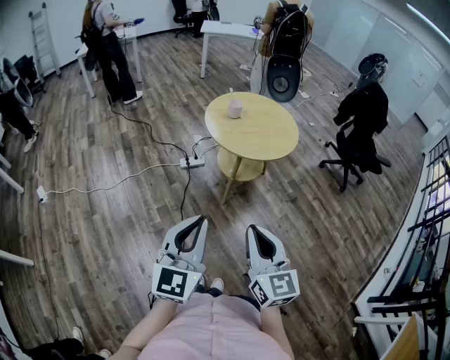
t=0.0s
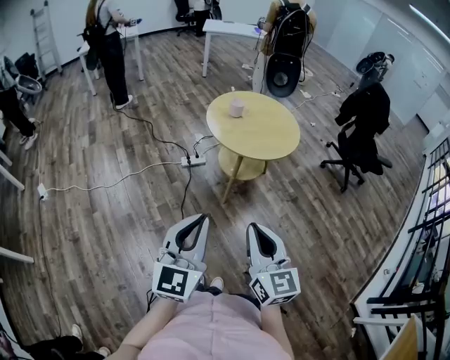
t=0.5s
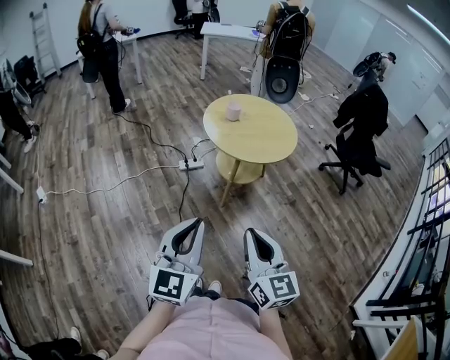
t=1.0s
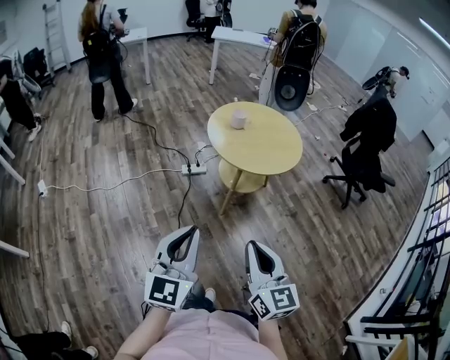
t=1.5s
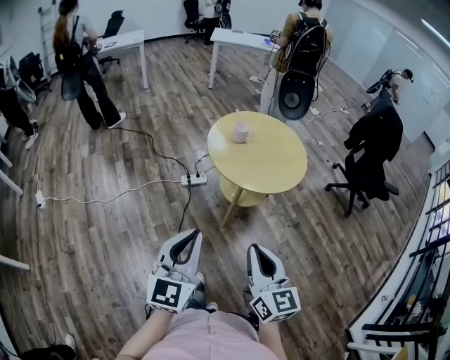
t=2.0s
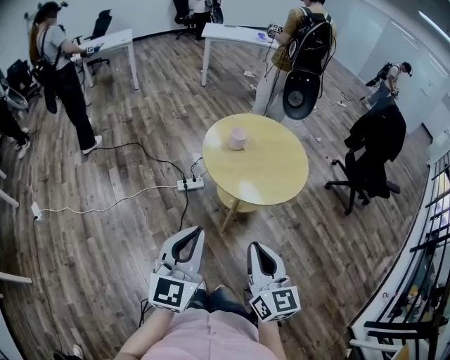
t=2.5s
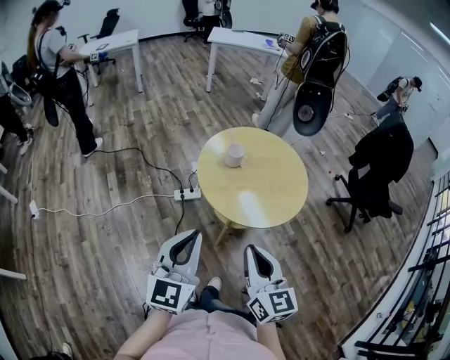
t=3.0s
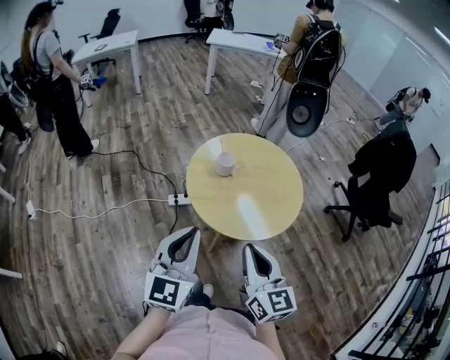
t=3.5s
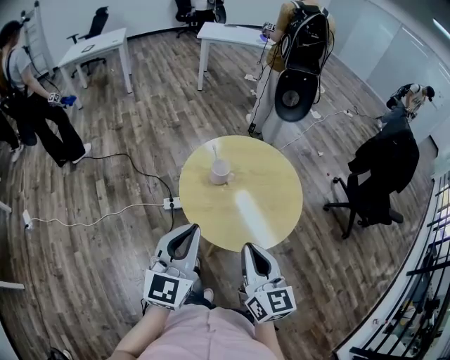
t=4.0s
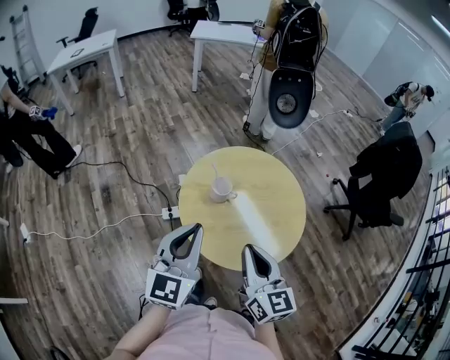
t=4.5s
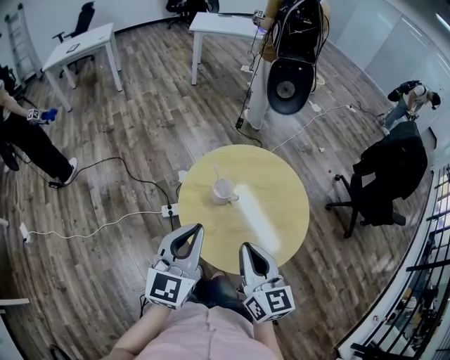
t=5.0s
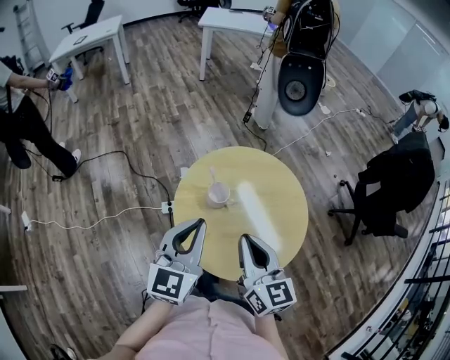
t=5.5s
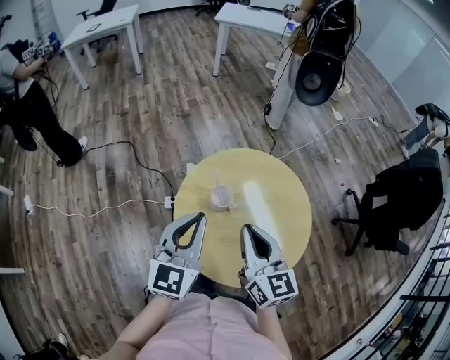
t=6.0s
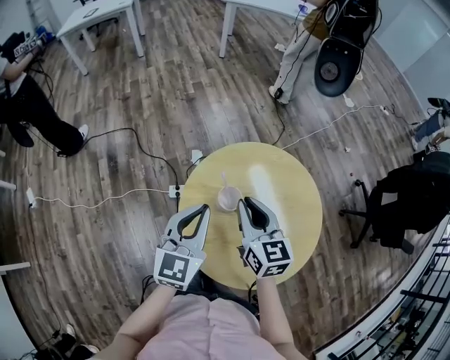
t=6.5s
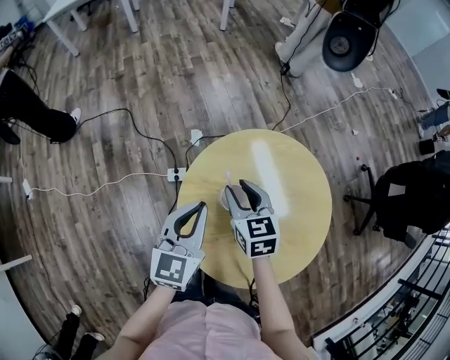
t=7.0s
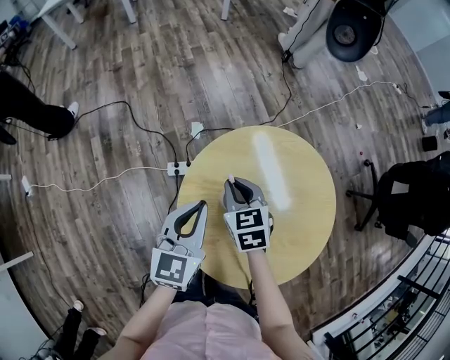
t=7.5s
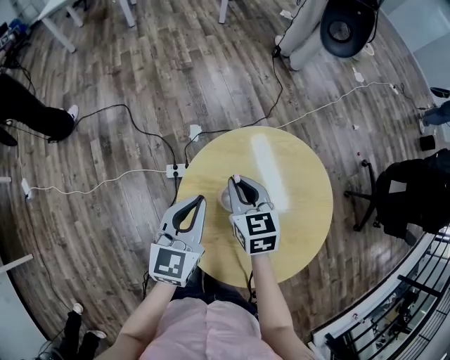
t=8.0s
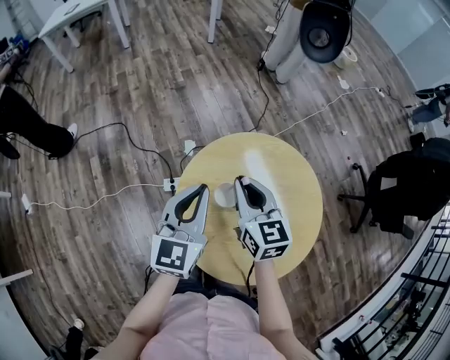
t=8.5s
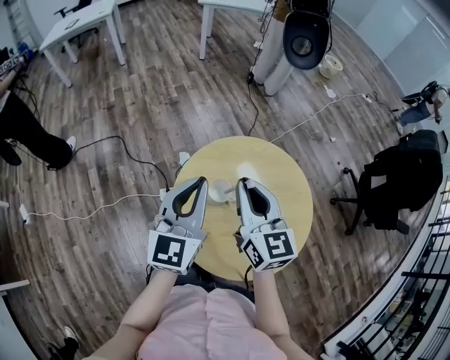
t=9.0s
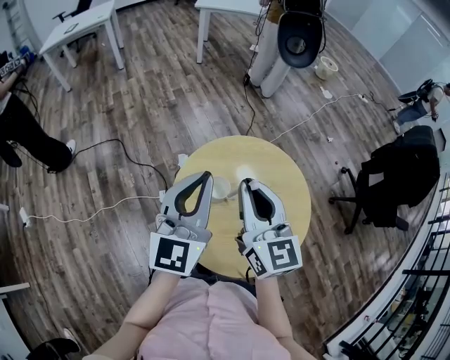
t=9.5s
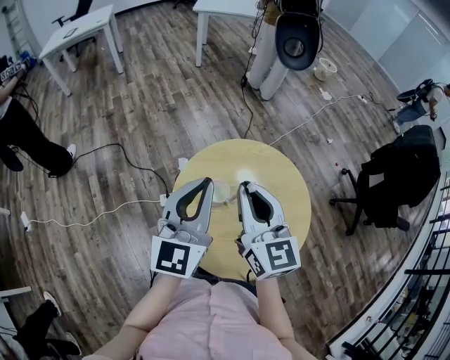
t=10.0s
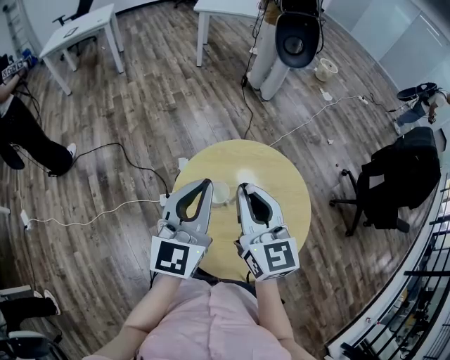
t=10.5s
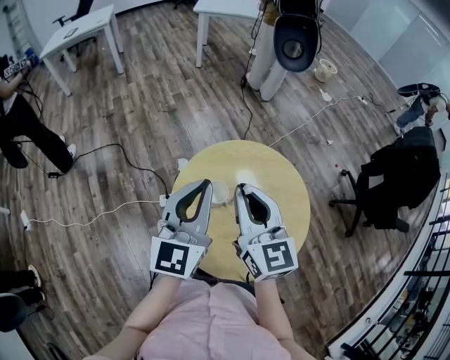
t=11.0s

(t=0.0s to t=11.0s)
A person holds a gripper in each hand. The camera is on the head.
t=0.0s - t=2.0s: The grippers both shift forward by approximately 10 cm.
t=2.0s - t=3.5s: The two grippers go roughly 25 cm forward.
t=3.5s - t=5.5s: Both grippers travel together forward, approximately 25 cm.
t=5.5s - t=7.5s: The right gripper travels forward and downward by roughly 30 cm, angles its fingers downward, by some 30 degrees, and opens and closes again. The left gripper travels forward and downward by about 20 cm.
t=7.5s - t=9.0s: The left gripper goes roughly 15 cm upward; the right gripper travels upward by about 20 cm, and tilts its fingers approximately 40 degrees upward.
t=9.0s - t=11.0s: There are only small adjustments of the grippers.

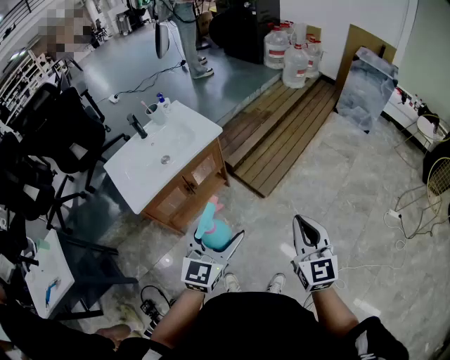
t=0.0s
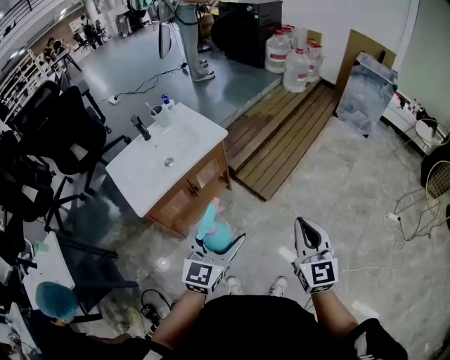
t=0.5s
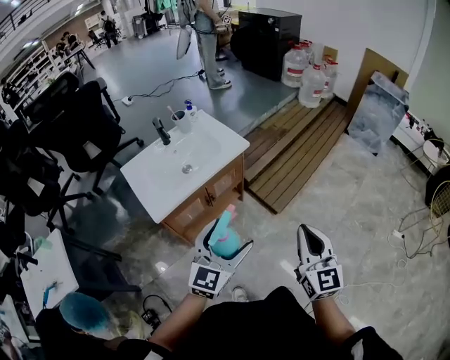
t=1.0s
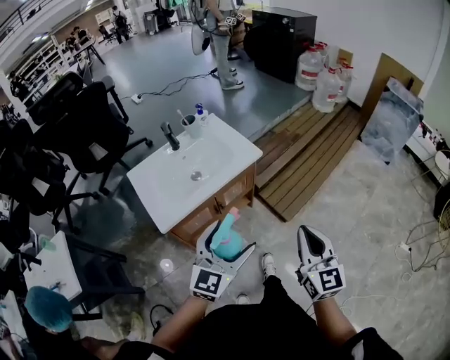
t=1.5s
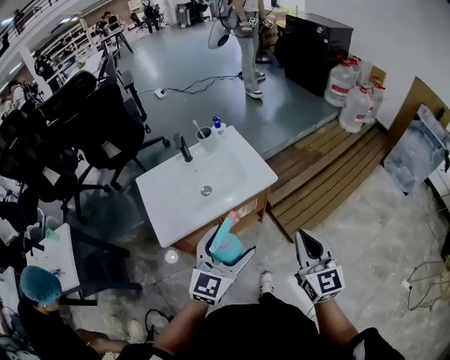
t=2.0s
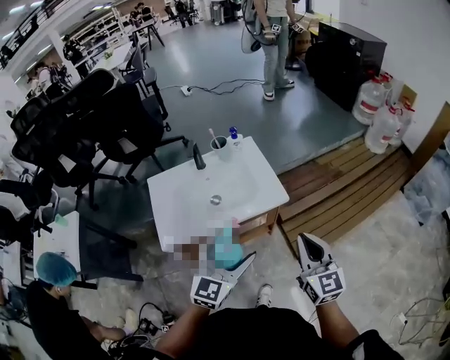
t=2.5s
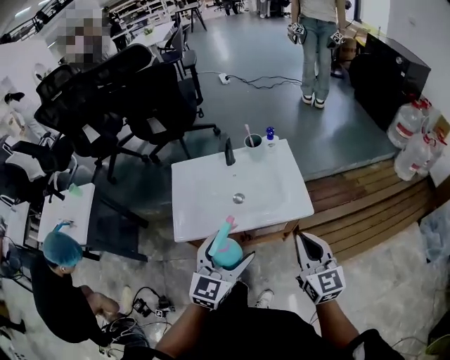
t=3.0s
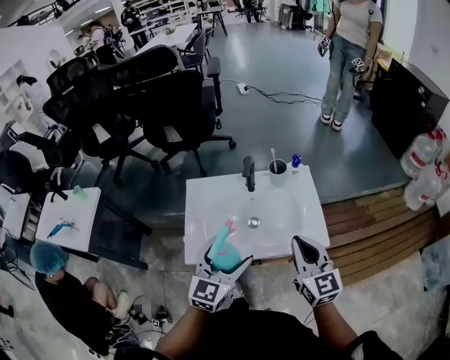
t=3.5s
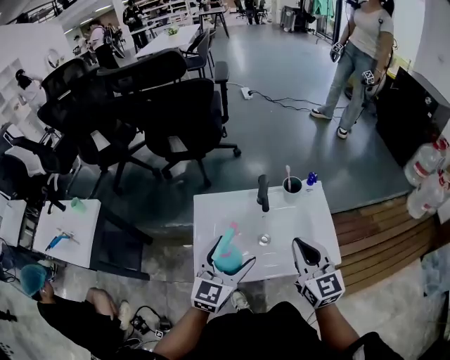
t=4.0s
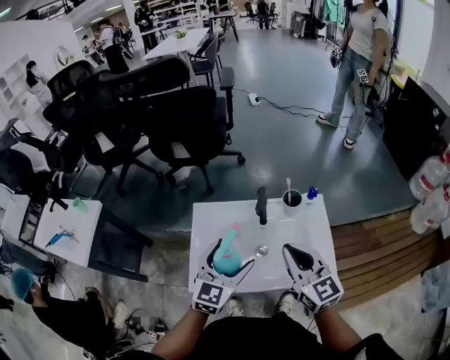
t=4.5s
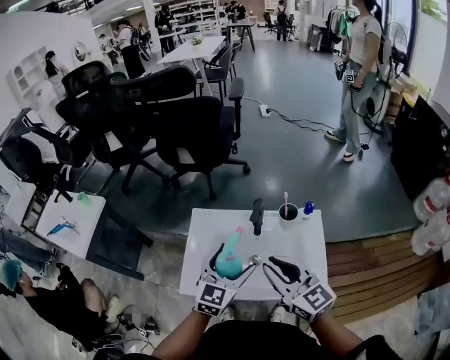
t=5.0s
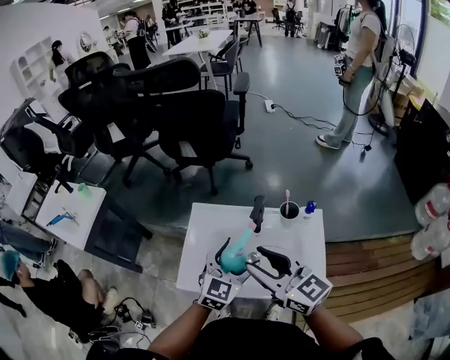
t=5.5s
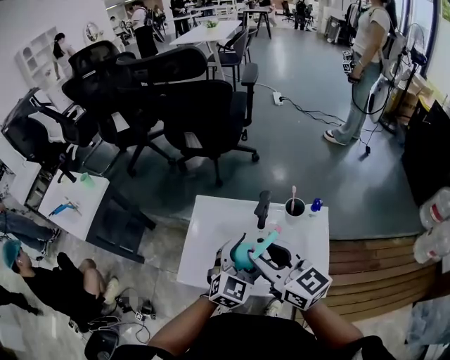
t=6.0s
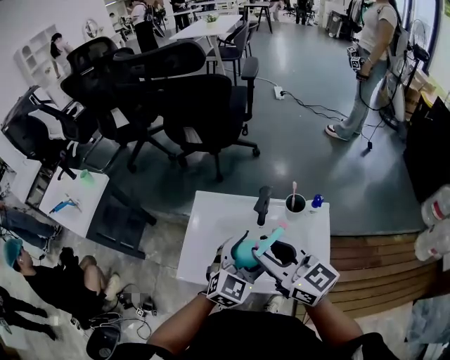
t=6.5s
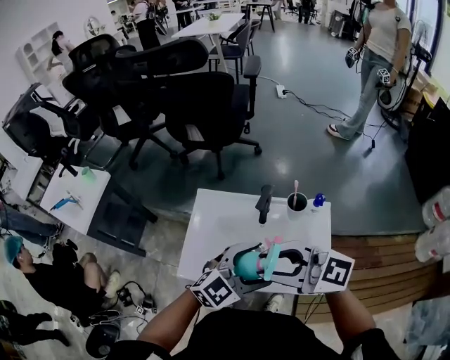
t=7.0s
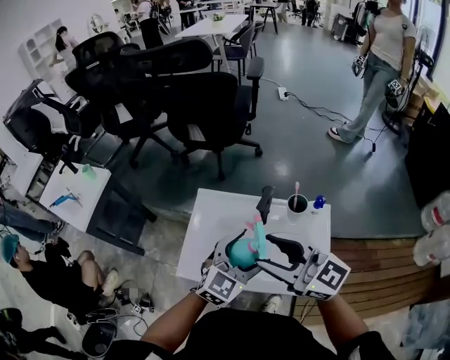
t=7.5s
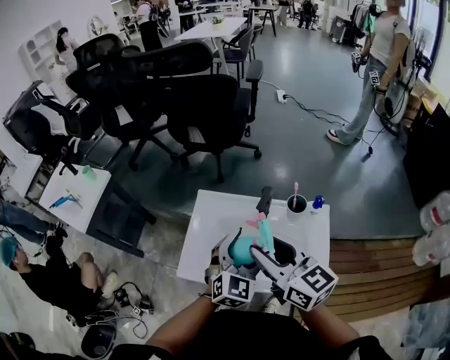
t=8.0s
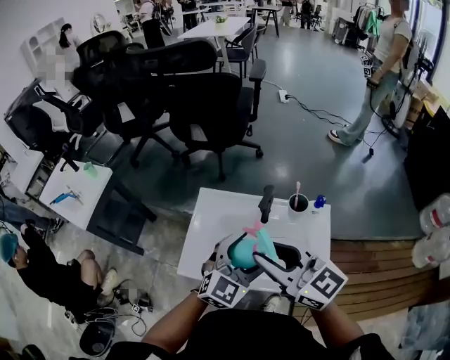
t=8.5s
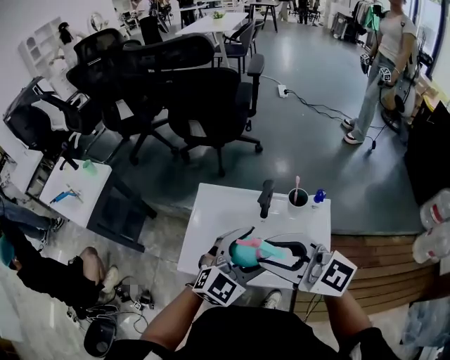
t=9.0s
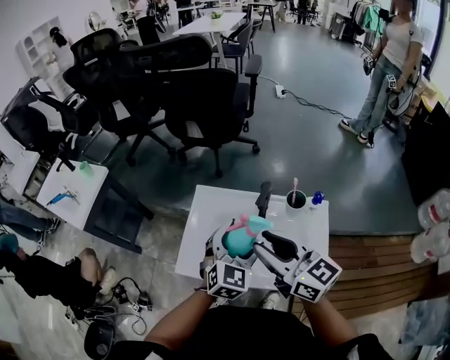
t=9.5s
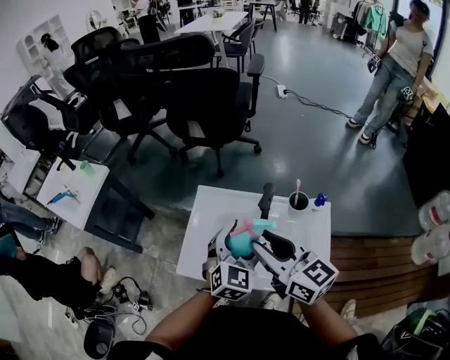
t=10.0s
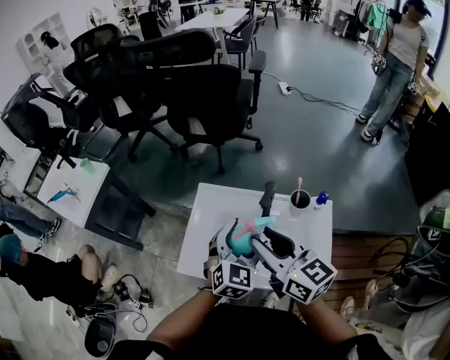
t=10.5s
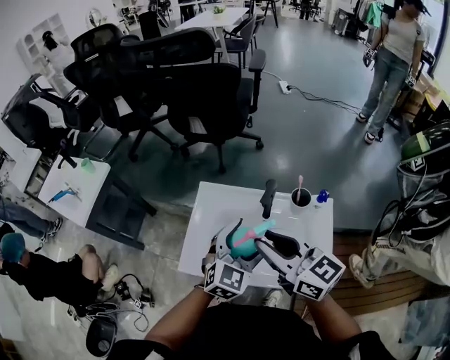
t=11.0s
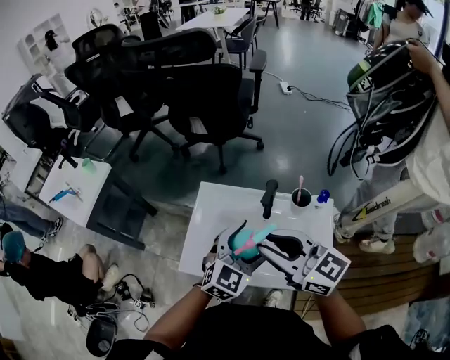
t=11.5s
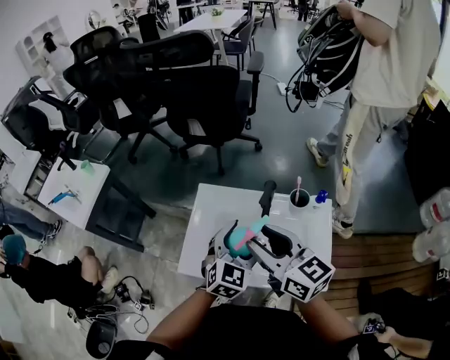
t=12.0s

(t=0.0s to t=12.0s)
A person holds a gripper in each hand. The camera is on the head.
t=0.0s - t=2.0s: The two grippers go about 25 cm forward and to the left.
t=2.0s - t=4.0s: The right gripper ends up some 35 cm from where it was, and swivels roughly 30 degrees. The left gripper ends up roughly 30 cm from where it was, and rotates some 30 degrees.
t=4.0s - t=6.0s: The right gripper travels to the left and forward by approximately 10 cm, rotates roughly 40 degrees, and opens. The left gripper goes some 10 cm to the right.
t=10.0s - t=12.0s: The grippers stay close to where they were, moving slightly.

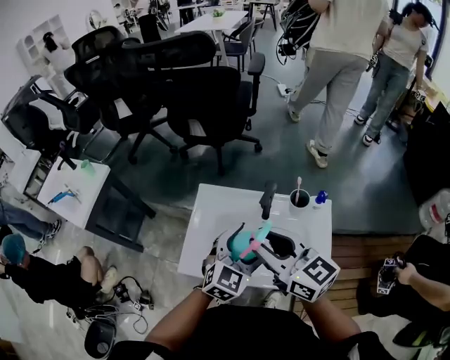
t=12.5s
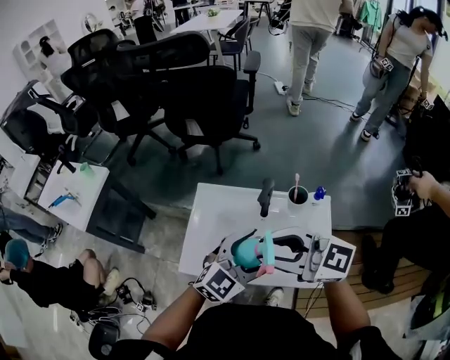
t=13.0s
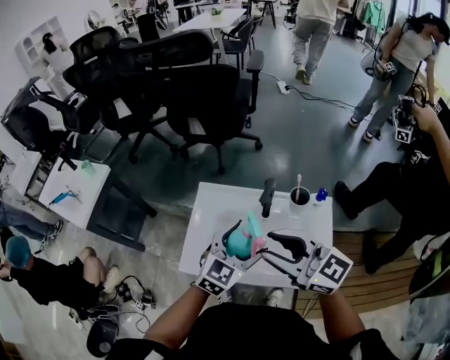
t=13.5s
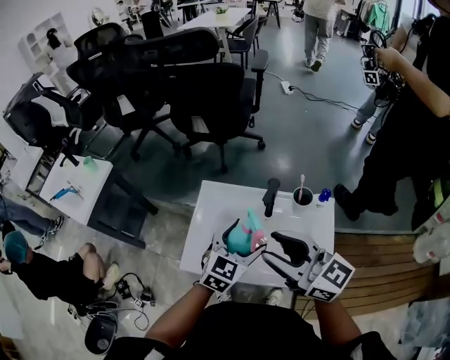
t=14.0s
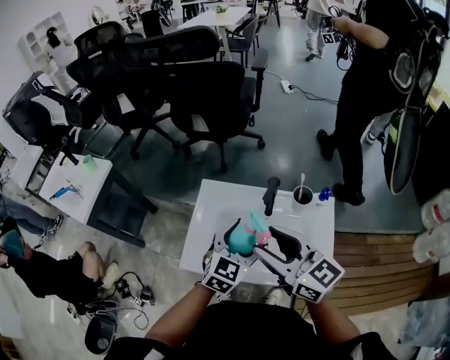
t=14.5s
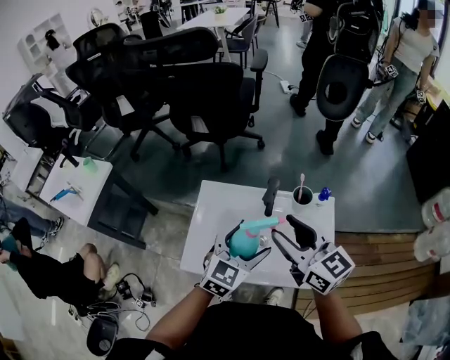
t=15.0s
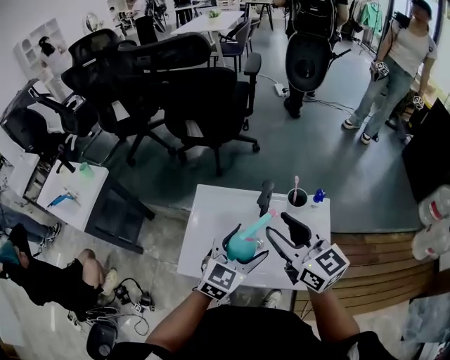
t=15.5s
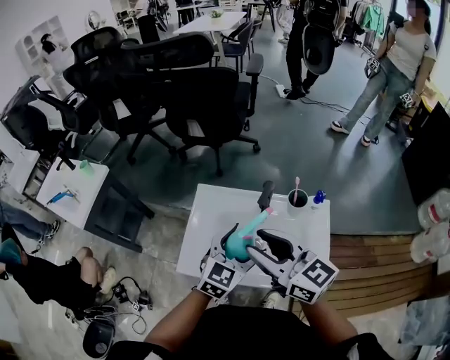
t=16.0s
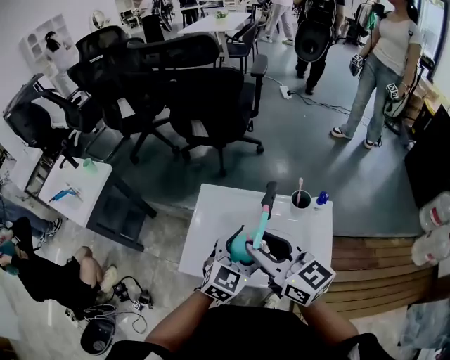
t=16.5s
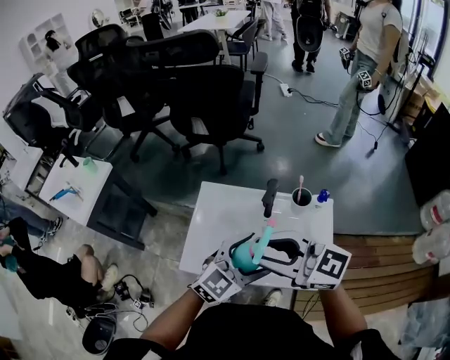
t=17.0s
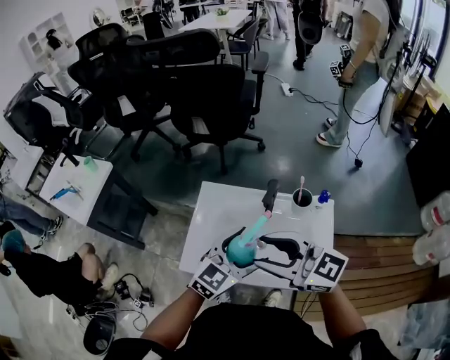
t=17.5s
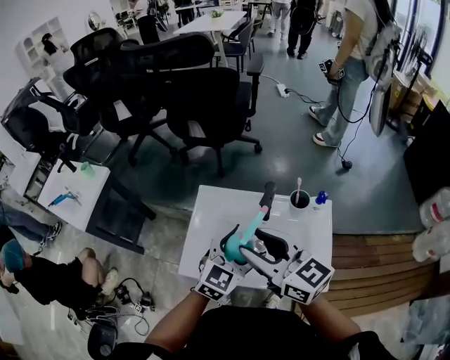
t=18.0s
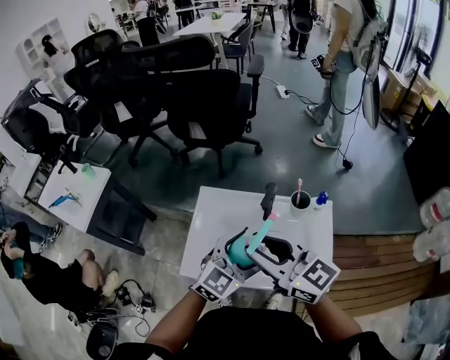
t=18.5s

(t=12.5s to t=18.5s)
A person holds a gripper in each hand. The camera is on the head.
t=12.5s - t=14.5s: The right gripper opens.
